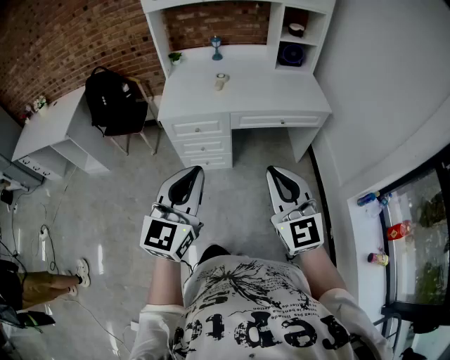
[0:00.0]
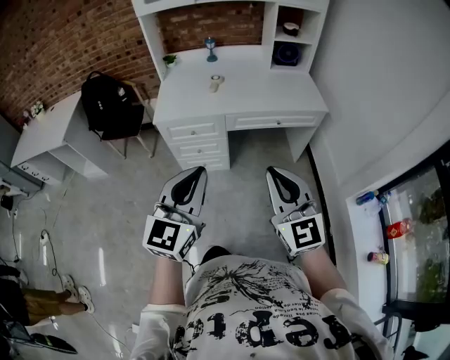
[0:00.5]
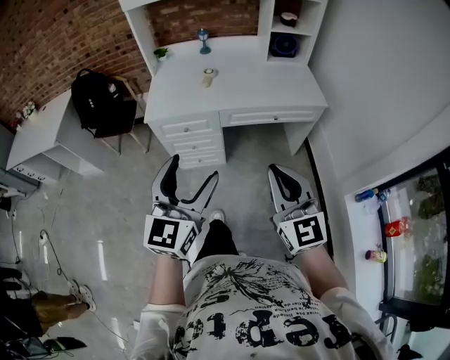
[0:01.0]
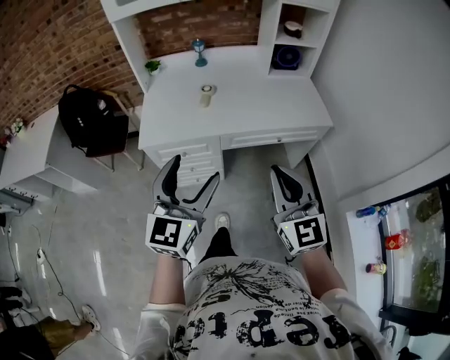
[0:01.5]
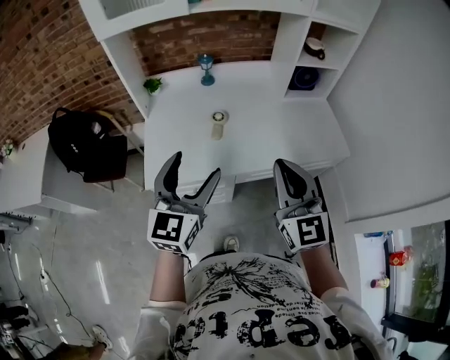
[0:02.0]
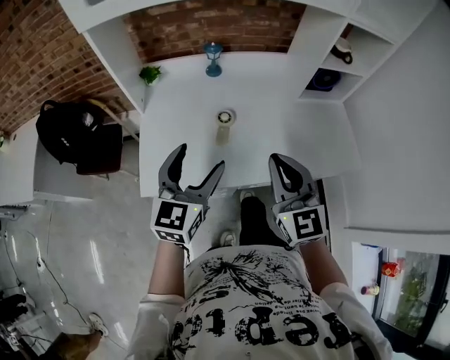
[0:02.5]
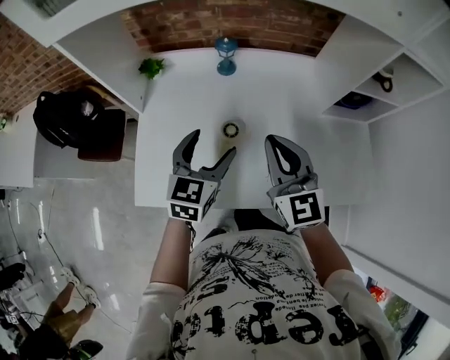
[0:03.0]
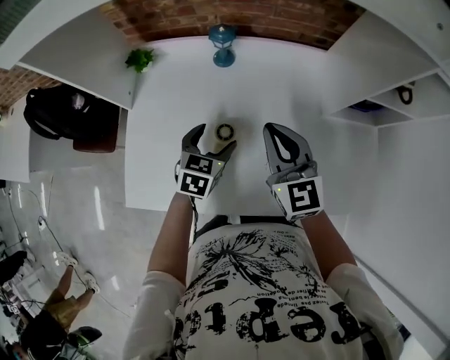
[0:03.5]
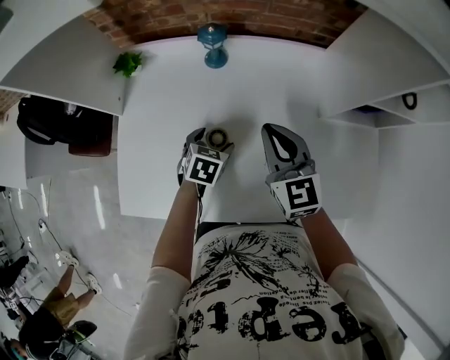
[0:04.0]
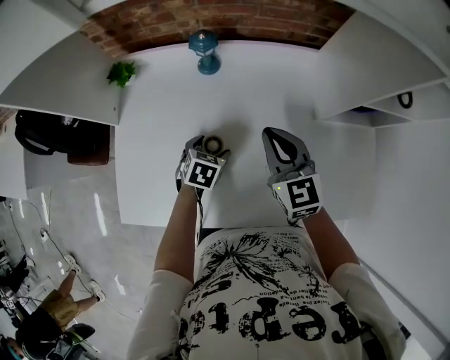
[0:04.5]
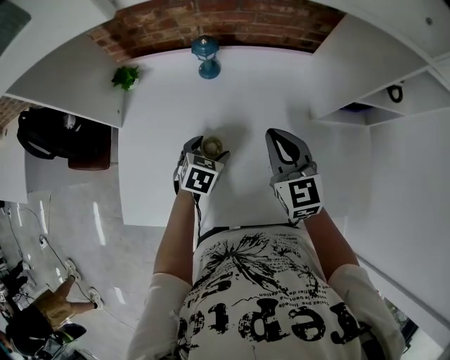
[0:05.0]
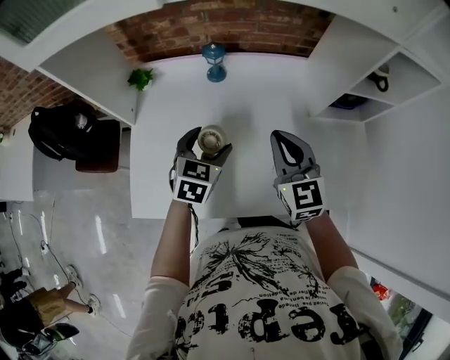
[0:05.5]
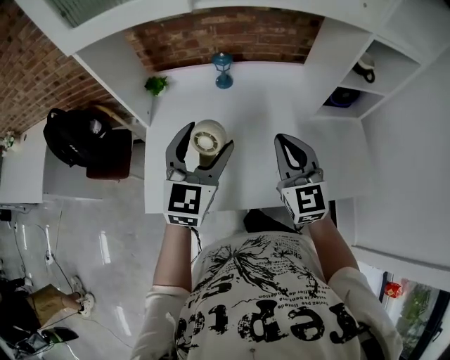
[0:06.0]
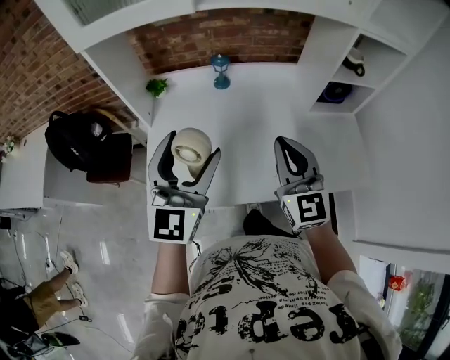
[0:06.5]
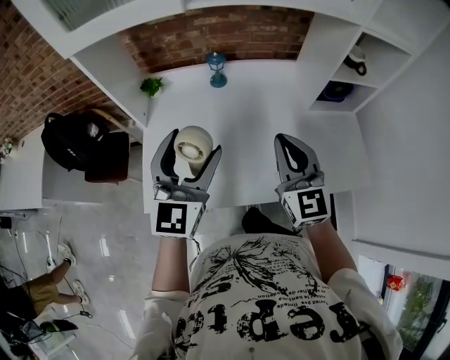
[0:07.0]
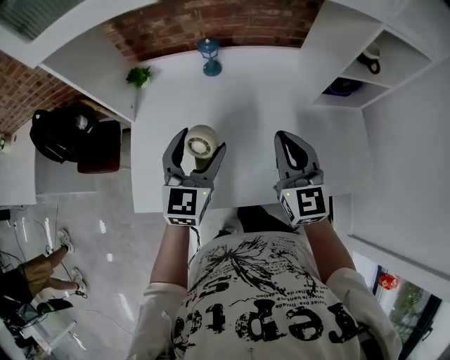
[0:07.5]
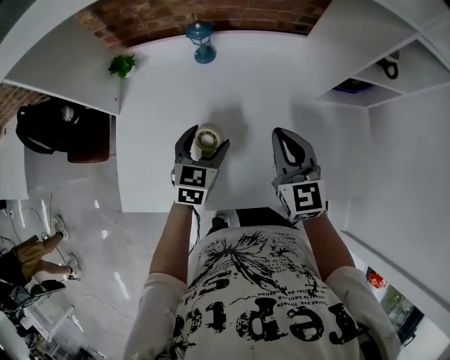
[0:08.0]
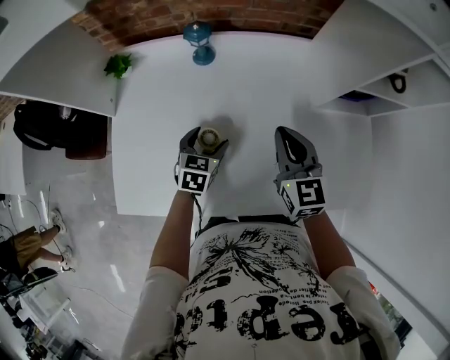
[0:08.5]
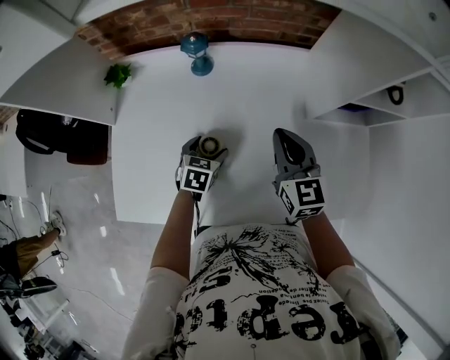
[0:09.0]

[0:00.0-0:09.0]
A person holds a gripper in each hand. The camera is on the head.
0:00.0 to 0:02.0: The two grippers travel together, forward, some 50 cm. The left gripper opens.
0:02.0 to 0:04.5: The two grippers travel together, forward, approximately 50 cm. The left gripper moves downward, some 40 cm, and tilts its fingers some 60 degrees downward. The right gripper heads downward, covering approximately 20 cm, and rotates about 30 degrees.
0:04.5 to 0:07.0: The right gripper travels backward and upward by some 25 cm, and swivels roughly 20 degrees, while the left gripper travels upward and backward by approximately 40 cm, and tilts its fingers roughly 60 degrees upward.
0:07.0 to 0:09.0: The left gripper shifts approximately 40 cm downward and forward, and angles its fingers downward, by about 50 degrees. The right gripper heads forward, downward and to the right, covering roughly 25 cm.

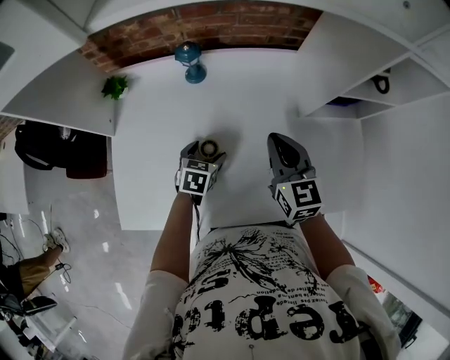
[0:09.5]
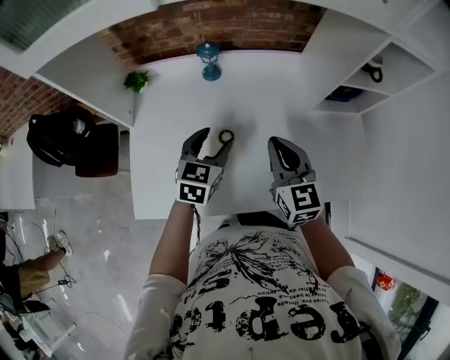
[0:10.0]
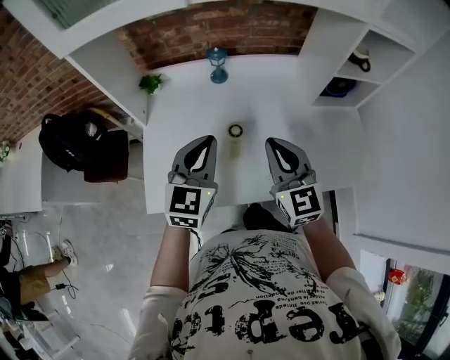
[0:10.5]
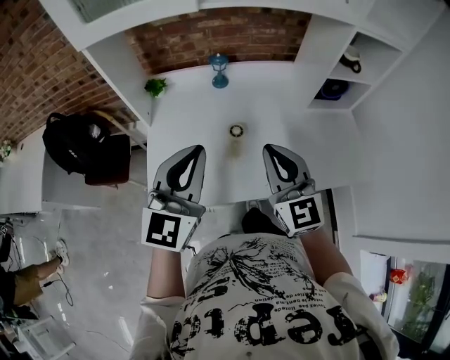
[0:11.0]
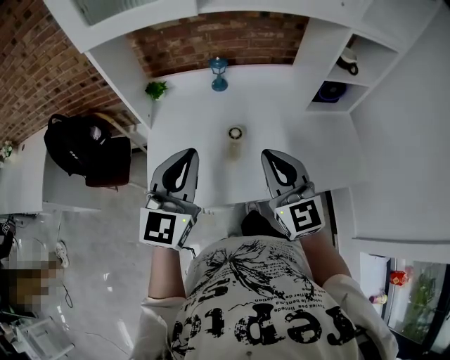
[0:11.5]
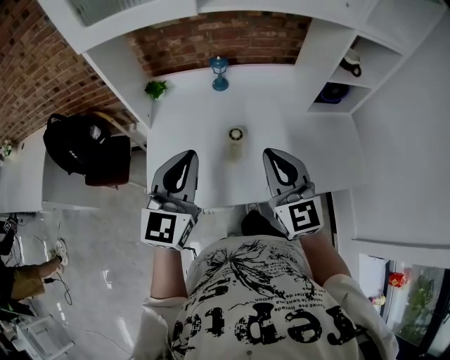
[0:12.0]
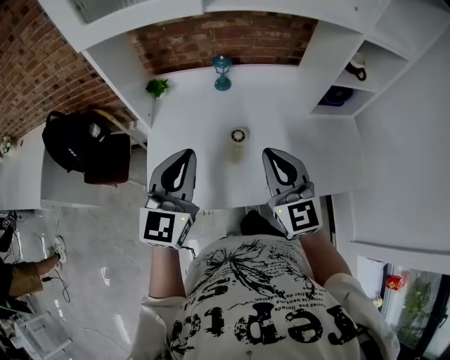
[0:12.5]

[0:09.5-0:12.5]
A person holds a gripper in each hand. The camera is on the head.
0:09.5 to 0:11.0: The left gripper is displaced upward and backward by roughly 40 cm, tilts its fingers roughly 50 degrees upward, and closes up, while the right gripper is displaced backward, upward and to the left by roughly 30 cm, and turns by about 20 degrees.
0:11.0 to 0:12.5: The left gripper changes place by some 5 cm.

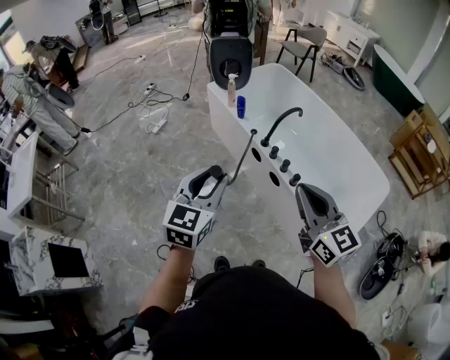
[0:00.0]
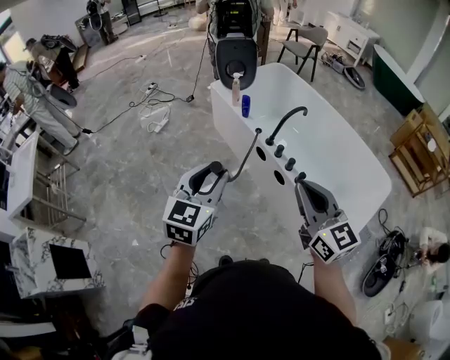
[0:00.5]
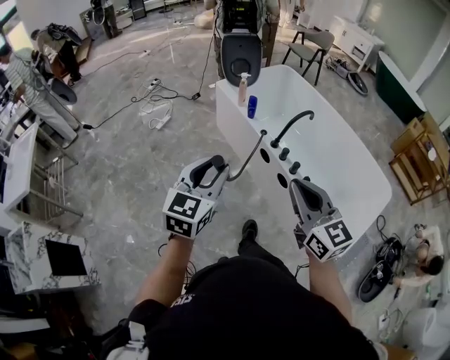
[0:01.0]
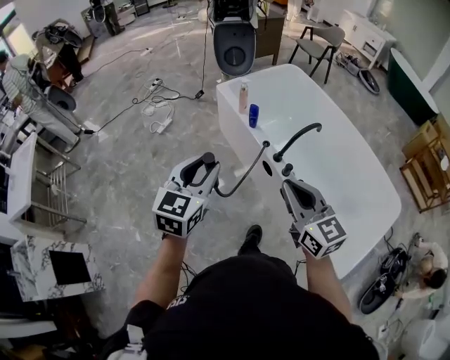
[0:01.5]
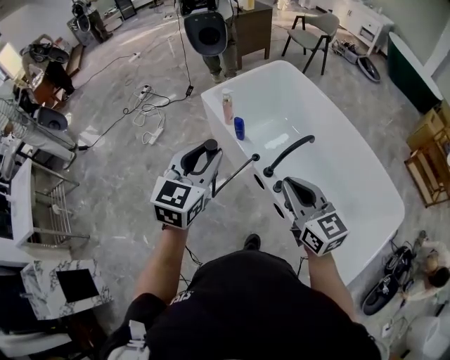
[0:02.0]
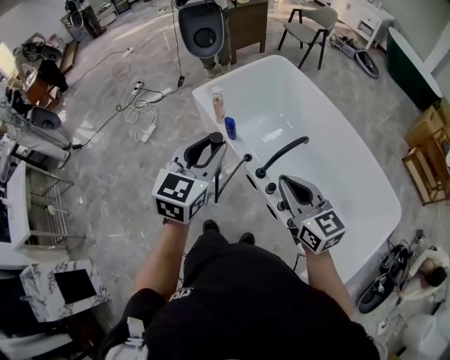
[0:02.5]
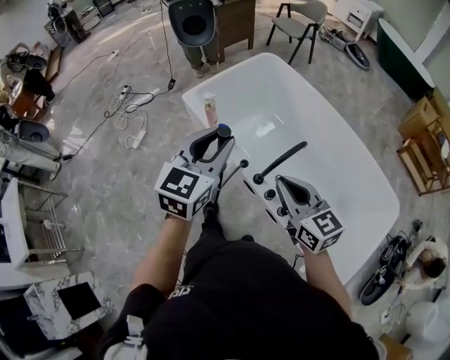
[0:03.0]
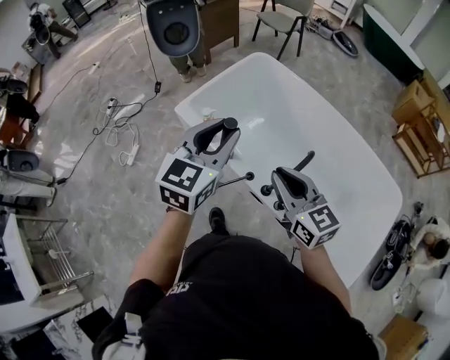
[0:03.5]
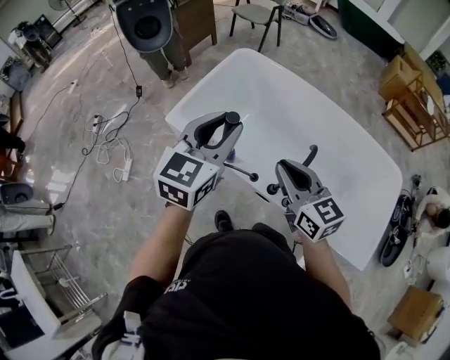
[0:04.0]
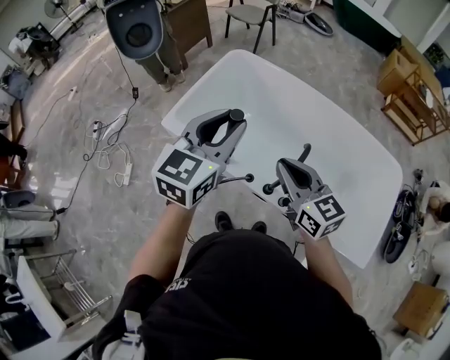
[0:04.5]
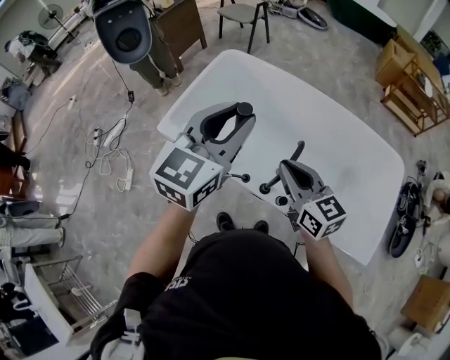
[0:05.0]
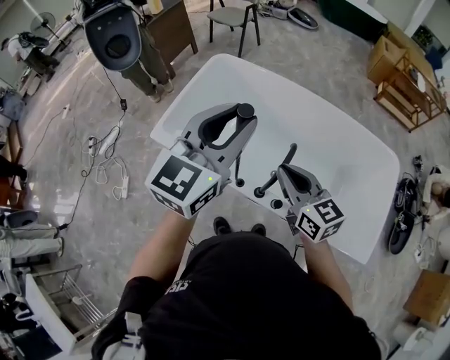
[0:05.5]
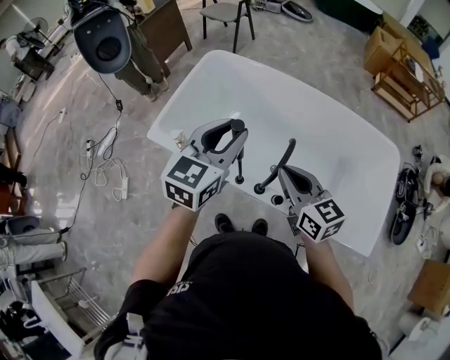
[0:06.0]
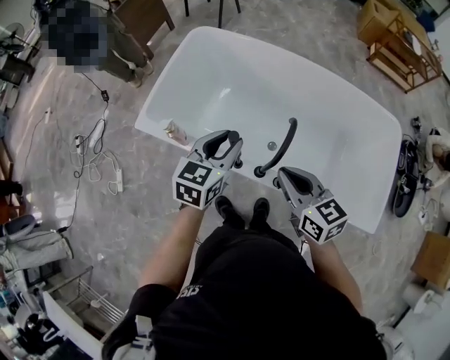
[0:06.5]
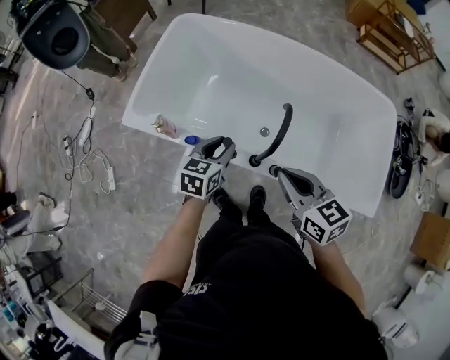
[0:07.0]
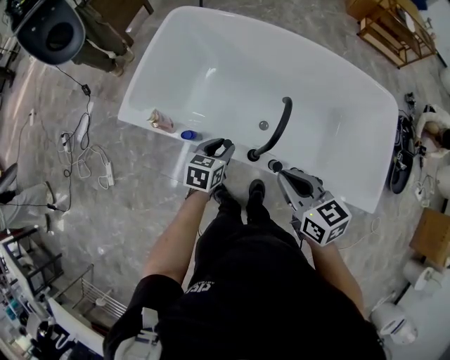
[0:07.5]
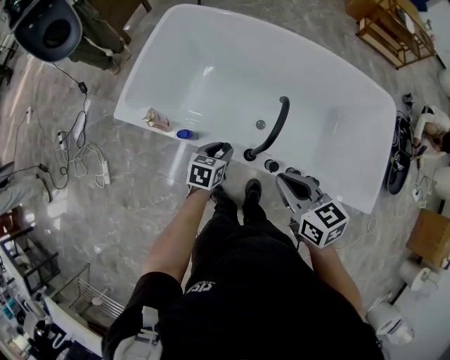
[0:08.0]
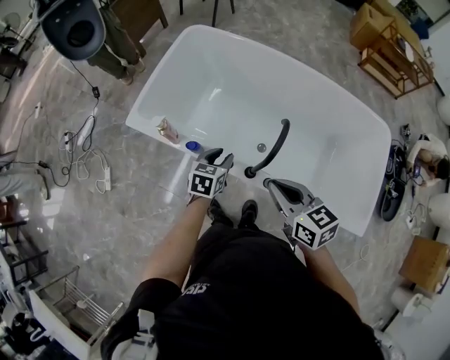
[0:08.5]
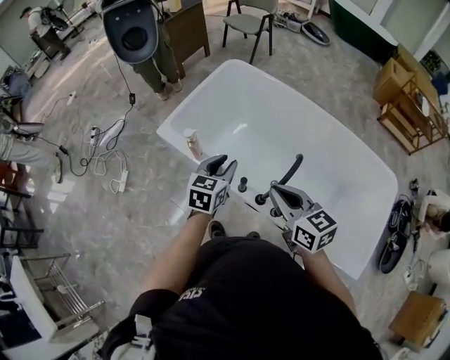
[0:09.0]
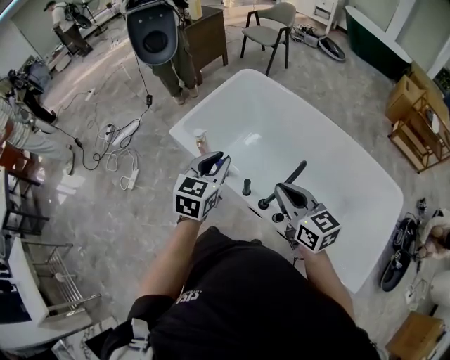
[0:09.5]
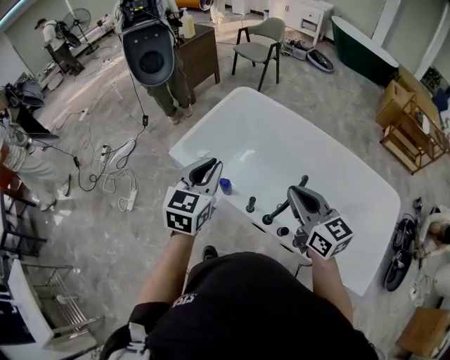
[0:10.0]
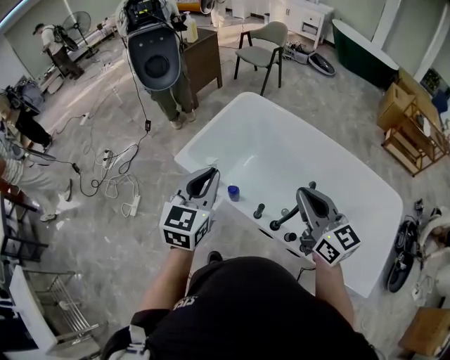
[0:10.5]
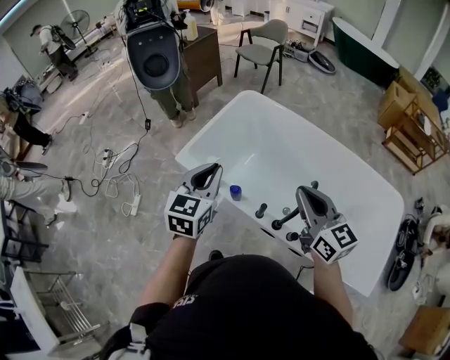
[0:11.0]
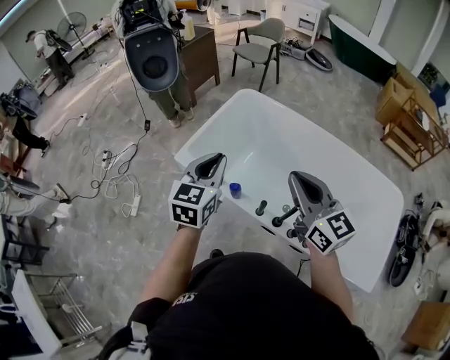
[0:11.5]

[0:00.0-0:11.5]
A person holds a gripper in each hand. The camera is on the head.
0:00.0 to 0:02.0: The two grippers go about 35 cm forward.
0:02.0 to 0:04.0: The grippers both shift forward by roughly 30 cm. The left gripper changes its angle by approximately 30 degrees, while the right gripper rotates approximately 20 degrees.
0:04.0 to 0:06.0: Both grippers travel together to the right, roughly 15 cm.
0:06.0 to 0:07.5: The left gripper is displaced downward by about 35 cm, and swivels about 30 degrees; the right gripper is displaced downward by approximately 10 cm.
0:07.5 to 0:09.5: The right gripper shifts some 10 cm upward, and swivels approximately 20 degrees; the left gripper is displaced upward by approximately 25 cm, and turns by some 30 degrees.
0:09.5 to 0:11.5: The left gripper travels to the left, upward and forward by roughly 10 cm. Meanwhile the right gripper heads upward, to the left and forward, covering roughly 15 cm.

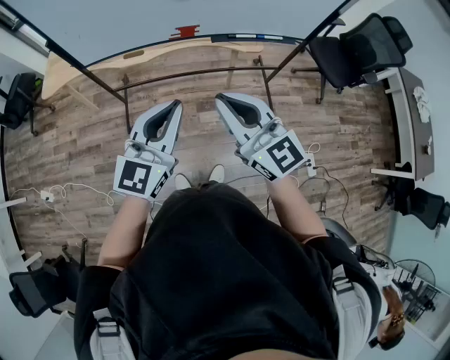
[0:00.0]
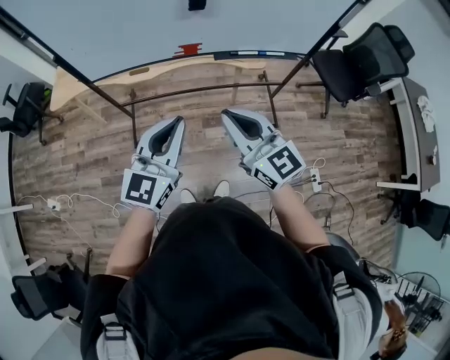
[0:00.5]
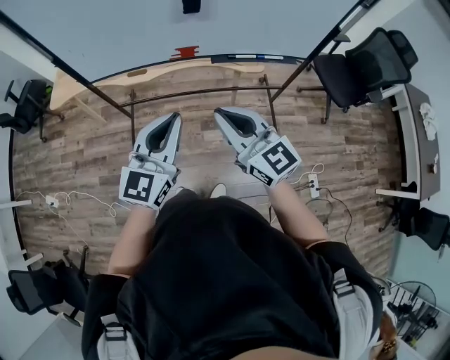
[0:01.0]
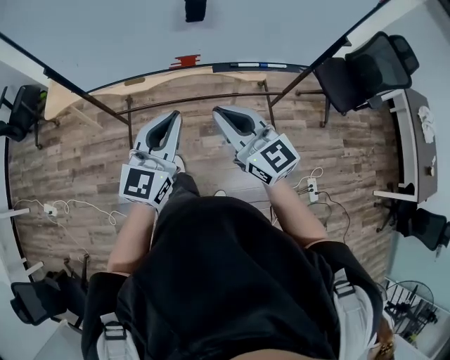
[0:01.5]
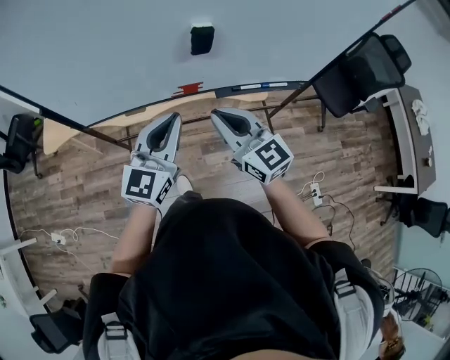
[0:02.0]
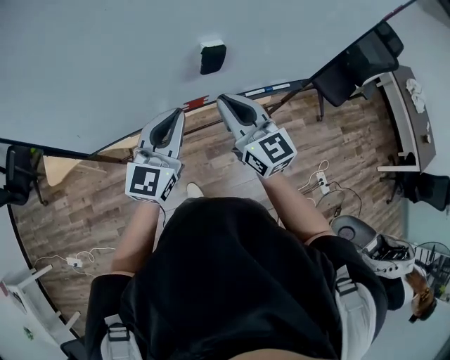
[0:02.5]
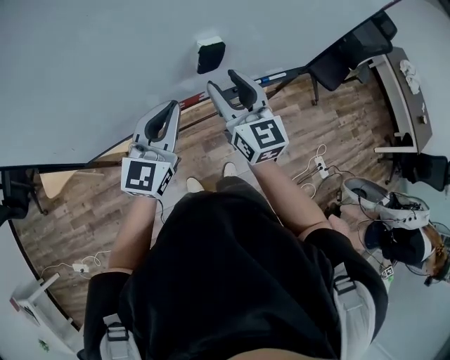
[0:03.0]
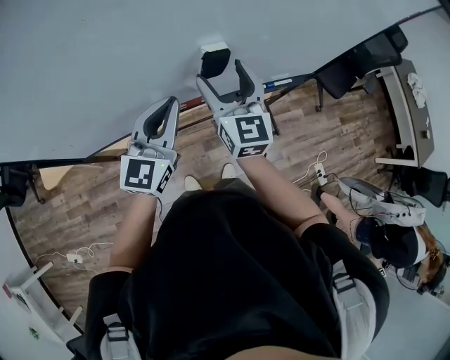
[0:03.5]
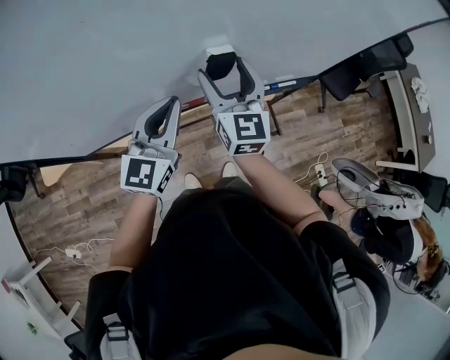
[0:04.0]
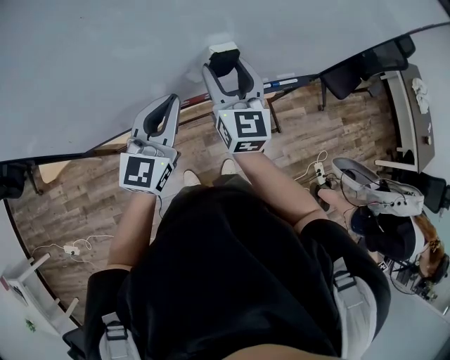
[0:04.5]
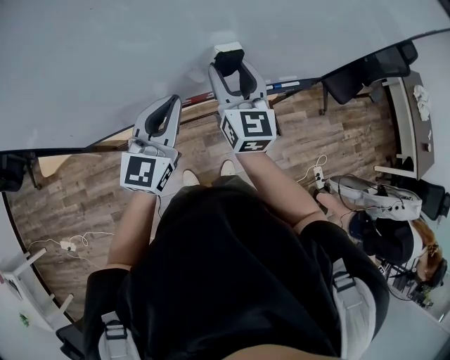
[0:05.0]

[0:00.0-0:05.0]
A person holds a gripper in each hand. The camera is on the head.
0:00.0 to 0:02.5: Both grippers move forward, approximately 35 cm.
0:02.5 to 0:05.0: The left gripper is displaced forward by about 5 cm. Meanwhile the right gripper heads forward, covering some 10 cm, and opens.
